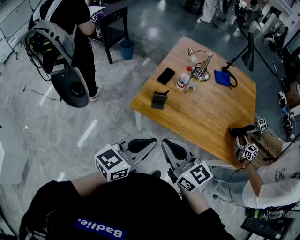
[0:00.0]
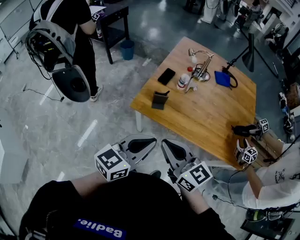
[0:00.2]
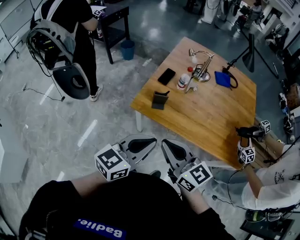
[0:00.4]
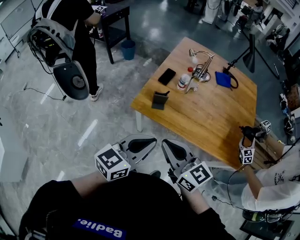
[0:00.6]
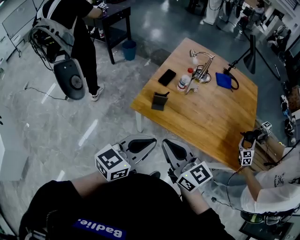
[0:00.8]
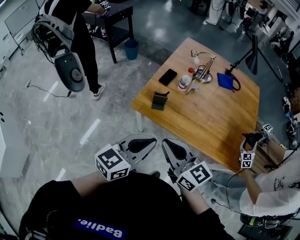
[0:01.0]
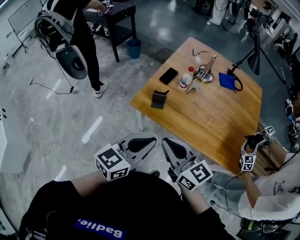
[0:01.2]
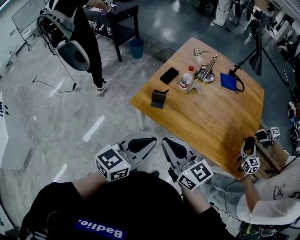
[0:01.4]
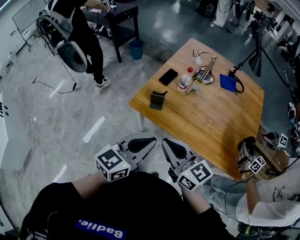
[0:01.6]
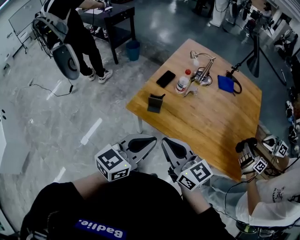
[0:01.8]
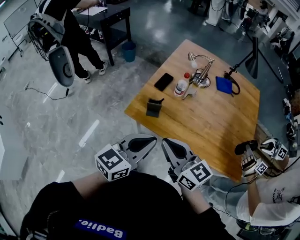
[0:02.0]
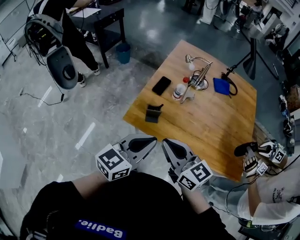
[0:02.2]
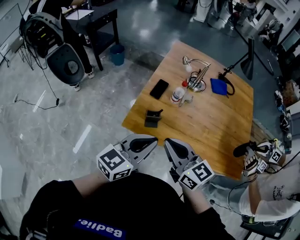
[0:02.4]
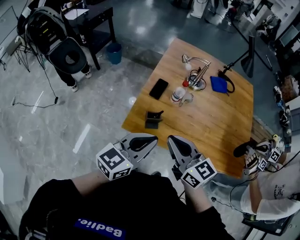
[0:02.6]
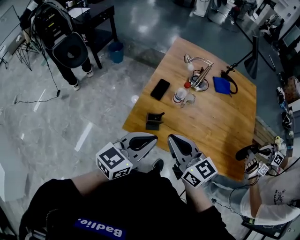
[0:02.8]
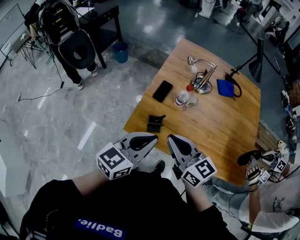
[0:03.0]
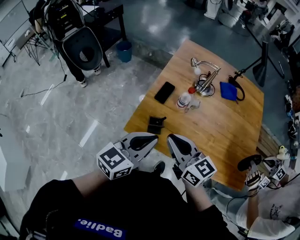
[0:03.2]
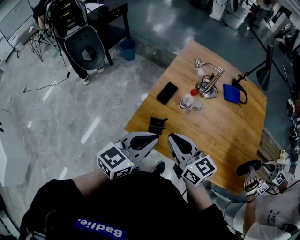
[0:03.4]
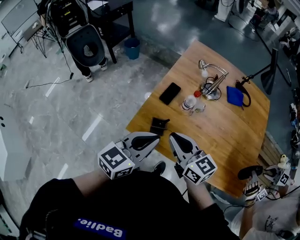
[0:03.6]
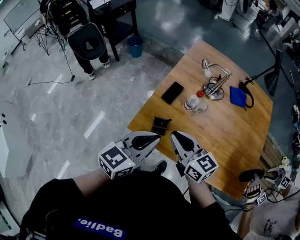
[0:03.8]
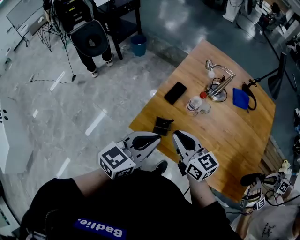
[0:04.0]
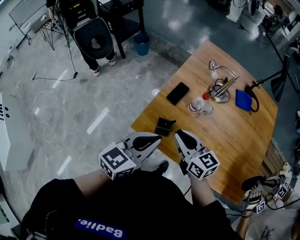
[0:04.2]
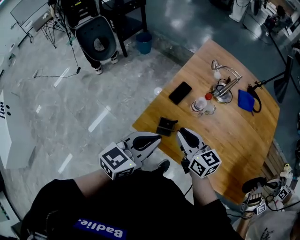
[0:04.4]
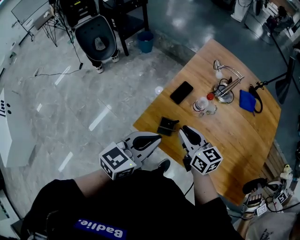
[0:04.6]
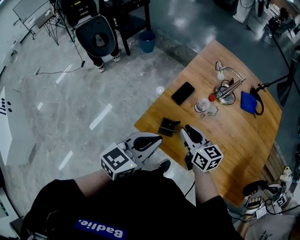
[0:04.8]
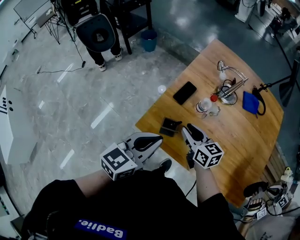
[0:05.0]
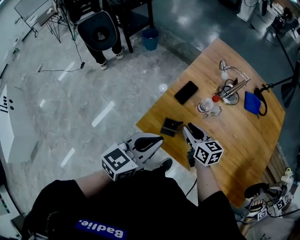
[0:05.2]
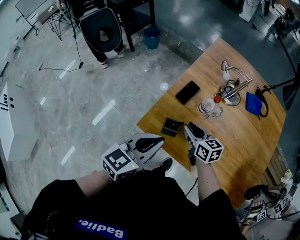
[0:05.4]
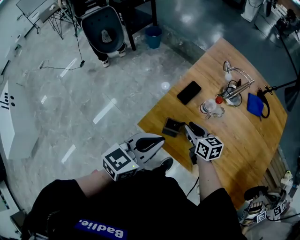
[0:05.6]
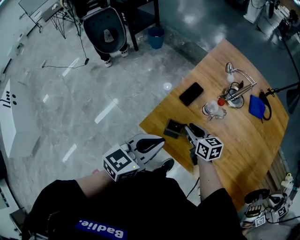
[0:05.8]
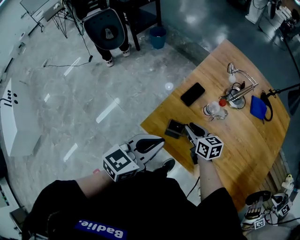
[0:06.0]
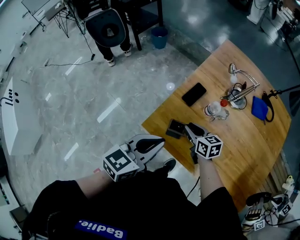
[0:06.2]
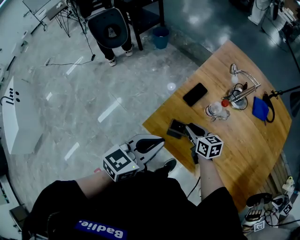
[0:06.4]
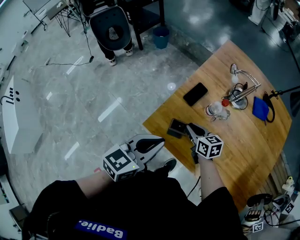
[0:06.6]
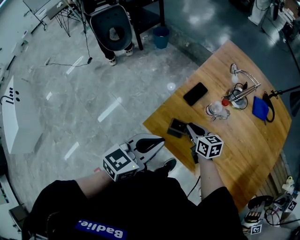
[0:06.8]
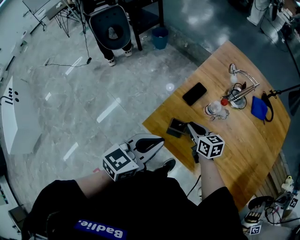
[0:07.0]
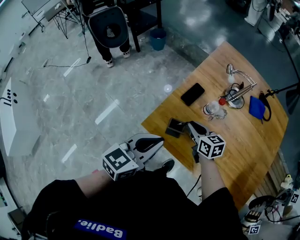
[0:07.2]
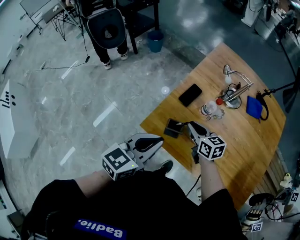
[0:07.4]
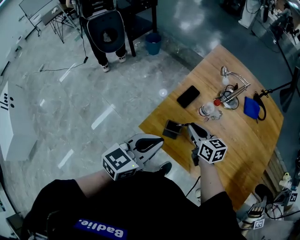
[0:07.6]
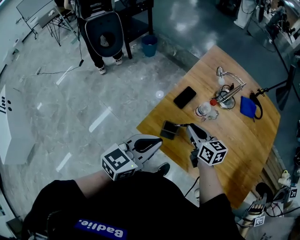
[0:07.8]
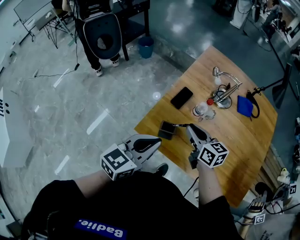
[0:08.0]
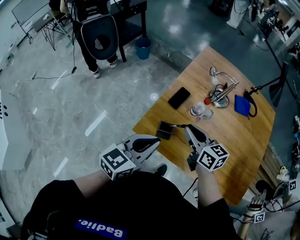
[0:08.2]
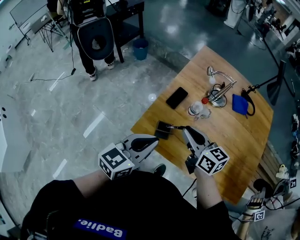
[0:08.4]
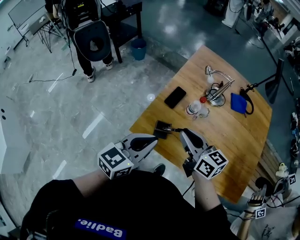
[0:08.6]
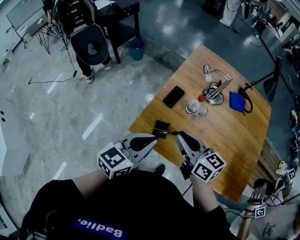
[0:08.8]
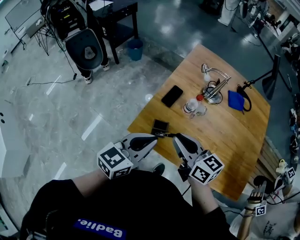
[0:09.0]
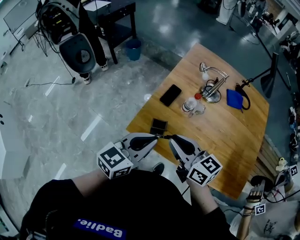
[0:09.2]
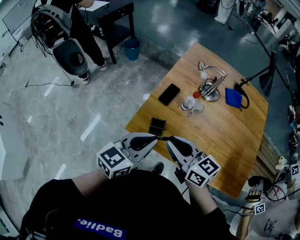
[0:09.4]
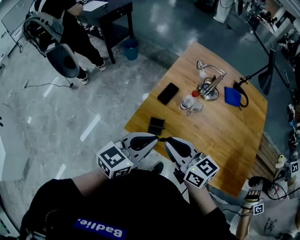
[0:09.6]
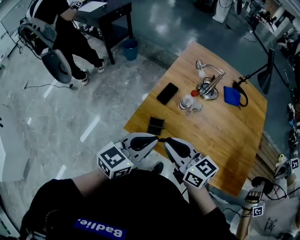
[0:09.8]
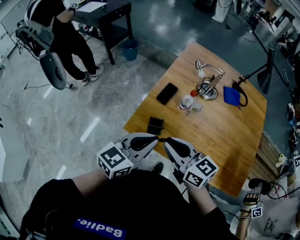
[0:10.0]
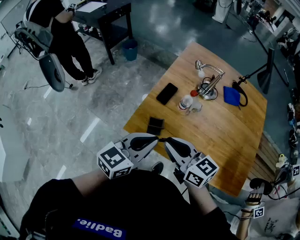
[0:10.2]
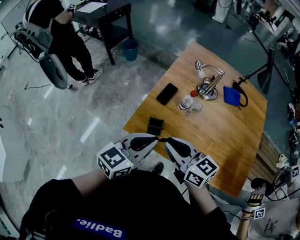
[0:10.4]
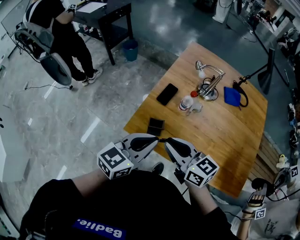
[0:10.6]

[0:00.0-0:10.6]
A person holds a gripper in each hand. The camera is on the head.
0:00.0 to 0:01.6: The grippers both shift to the right by approximately 5 cm.
0:01.6 to 0:03.0: Both grippers travel together forward, some 20 cm.
0:03.0 to 0:04.6: The right gripper moves downward and forward, some 15 cm. The left gripper changes place by approximately 5 cm.
0:04.6 to 0:06.0: The right gripper moves downward and forward, approximately 10 cm.
0:06.0 to 0:07.6: The right gripper is displaced upward by approximately 5 cm.
0:07.6 to 0:09.0: The right gripper goes some 15 cm upward and backward.
0:09.0 to 0:10.6: The grippers make only small movements.

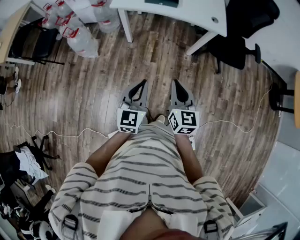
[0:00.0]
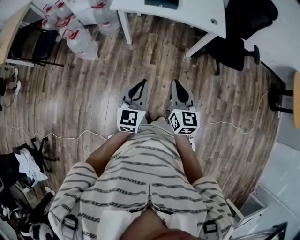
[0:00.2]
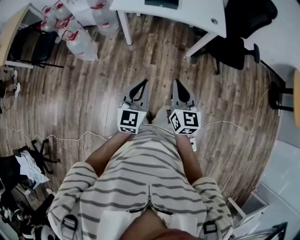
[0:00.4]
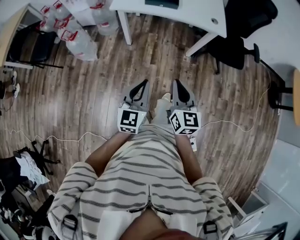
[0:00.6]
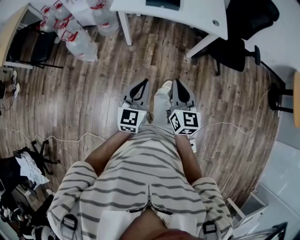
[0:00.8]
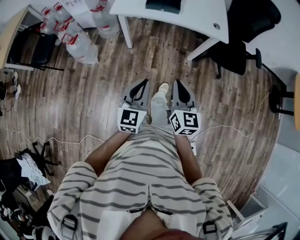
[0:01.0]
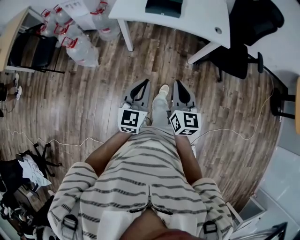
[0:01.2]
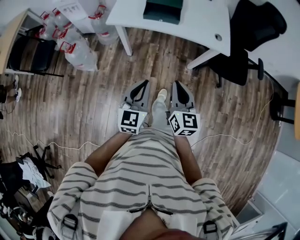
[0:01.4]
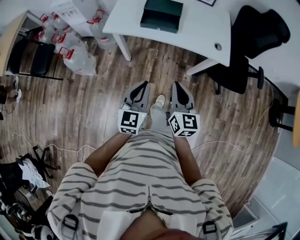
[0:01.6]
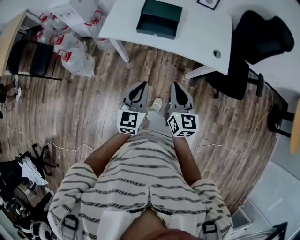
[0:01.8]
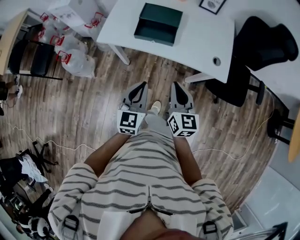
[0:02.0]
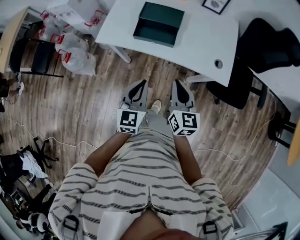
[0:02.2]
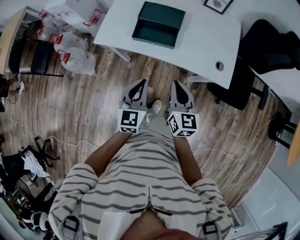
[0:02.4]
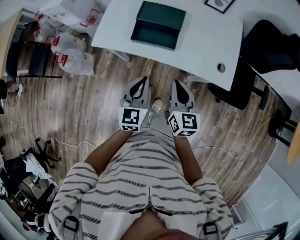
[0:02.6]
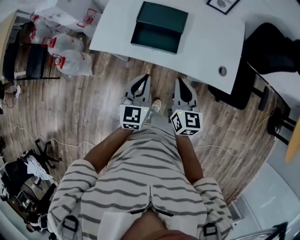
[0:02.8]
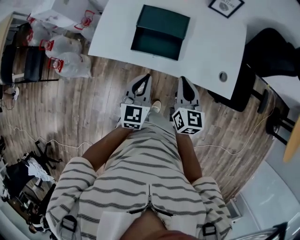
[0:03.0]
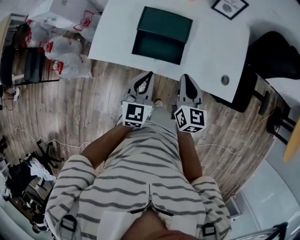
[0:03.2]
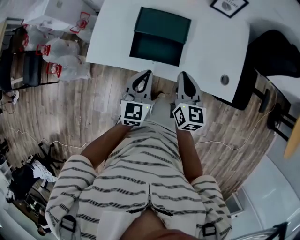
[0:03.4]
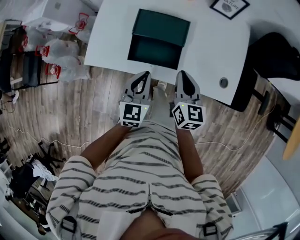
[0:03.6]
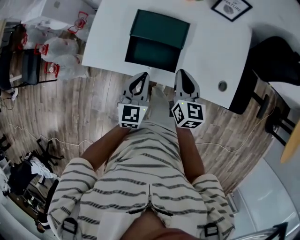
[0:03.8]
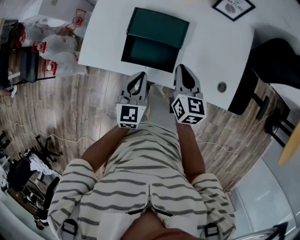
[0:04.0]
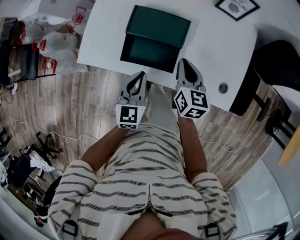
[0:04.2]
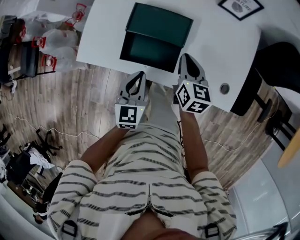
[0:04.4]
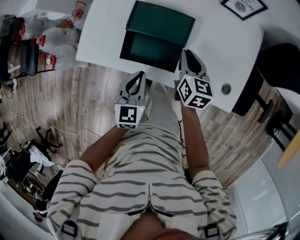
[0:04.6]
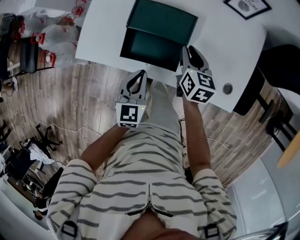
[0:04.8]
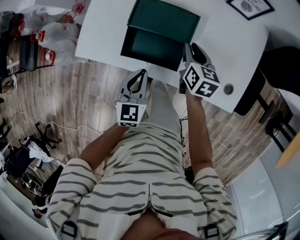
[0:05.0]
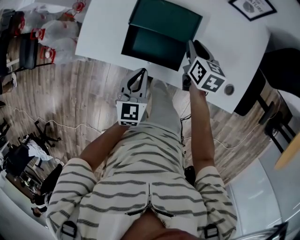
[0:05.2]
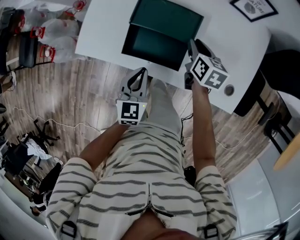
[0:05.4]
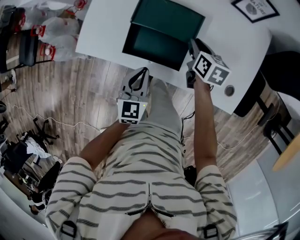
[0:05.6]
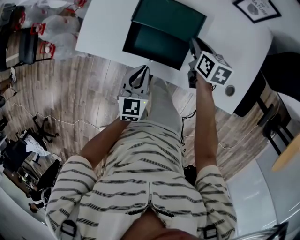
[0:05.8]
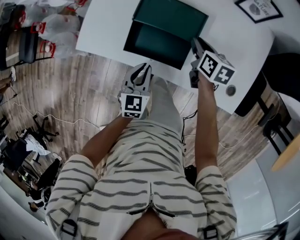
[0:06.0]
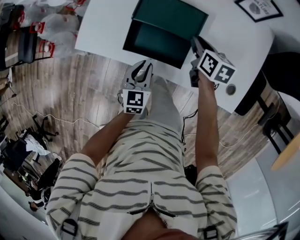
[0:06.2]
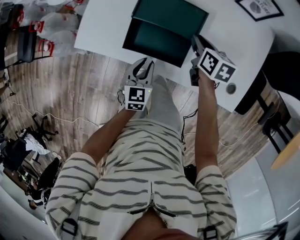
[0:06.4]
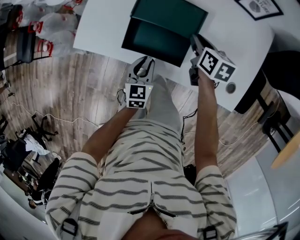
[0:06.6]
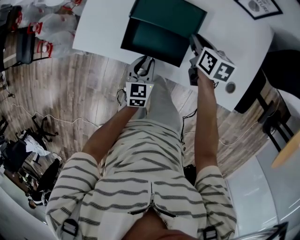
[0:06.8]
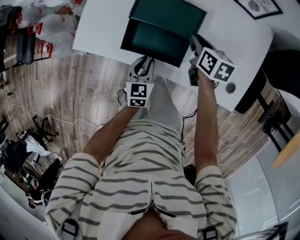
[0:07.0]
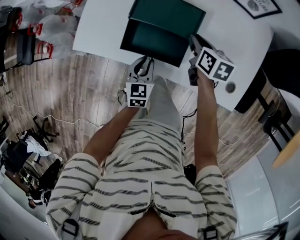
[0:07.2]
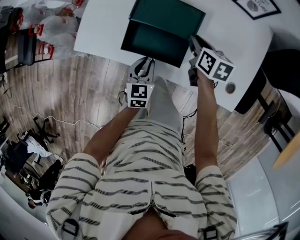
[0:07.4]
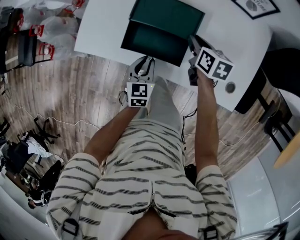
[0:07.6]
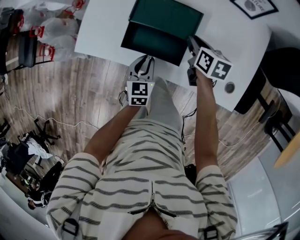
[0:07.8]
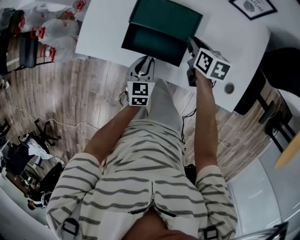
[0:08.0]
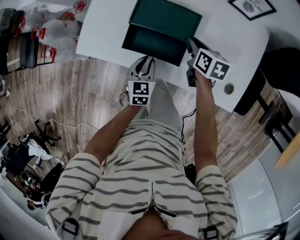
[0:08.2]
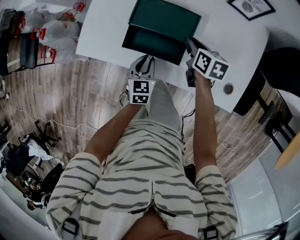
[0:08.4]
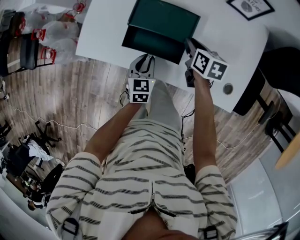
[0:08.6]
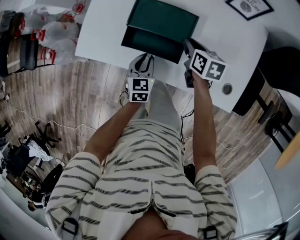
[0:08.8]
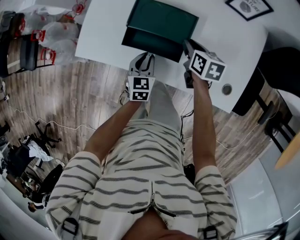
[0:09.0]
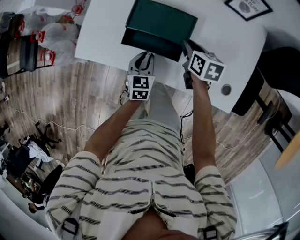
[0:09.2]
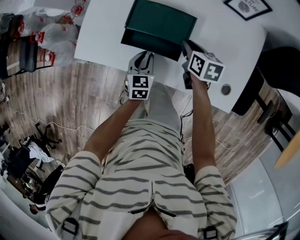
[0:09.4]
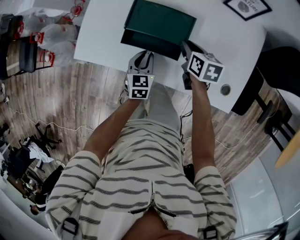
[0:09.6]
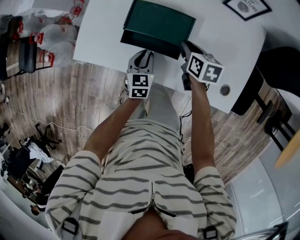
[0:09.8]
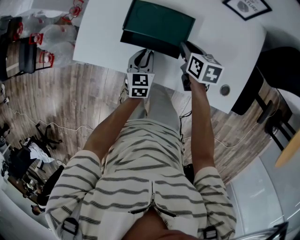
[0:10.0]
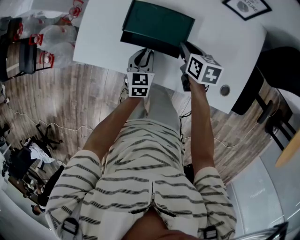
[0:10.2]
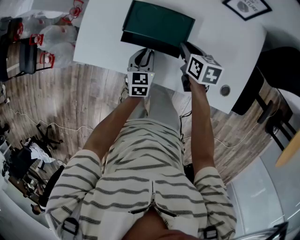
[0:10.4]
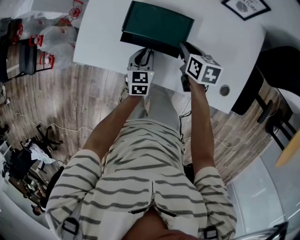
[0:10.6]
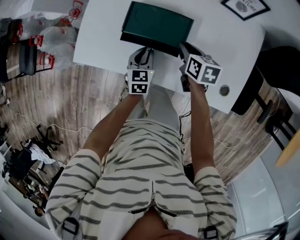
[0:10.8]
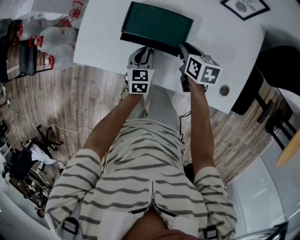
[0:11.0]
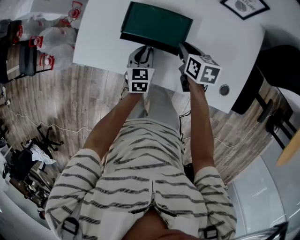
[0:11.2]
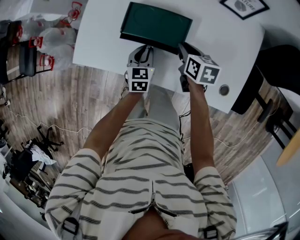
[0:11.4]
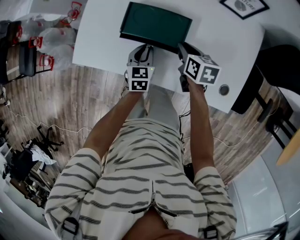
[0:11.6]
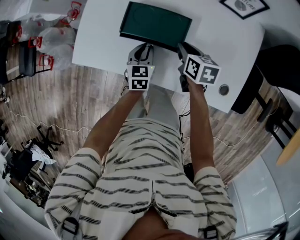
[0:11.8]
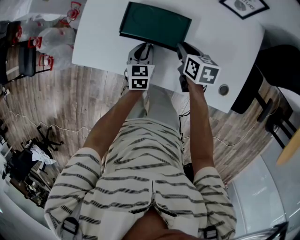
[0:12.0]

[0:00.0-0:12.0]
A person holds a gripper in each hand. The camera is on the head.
0:00.0 to 0:01.6: The two grippers go roughly 25 cm forward.
0:01.6 to 0:03.0: Both grippers move forward, roughly 30 cm.
0:03.0 to 0:04.4: The left gripper heads forward and downward, covering roughly 10 cm; the right gripper heads forward and downward, covering roughly 20 cm.
0:04.4 to 0:06.0: The right gripper heads downward and forward, covering approximately 10 cm, while the left gripper moves downward, approximately 5 cm.
0:06.0 to 0:07.6: The grippers make only small movements.
0:07.6 to 0:09.0: The grippers make only small movements.
0:09.0 to 0:10.4: The grippers stay close to where they were, moving slightly.
0:10.4 to 0:12.0: There are only small adjustments of the grippers.

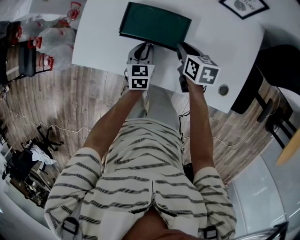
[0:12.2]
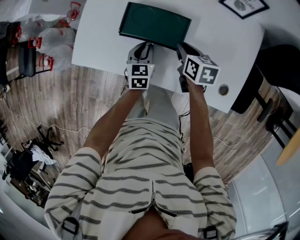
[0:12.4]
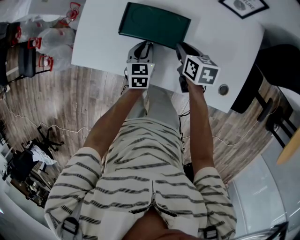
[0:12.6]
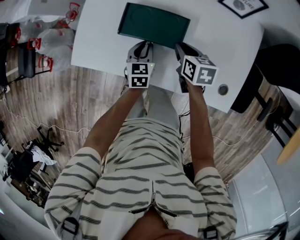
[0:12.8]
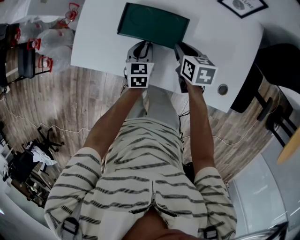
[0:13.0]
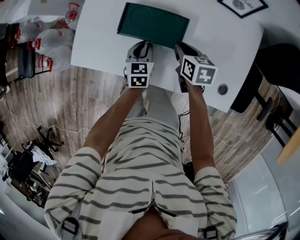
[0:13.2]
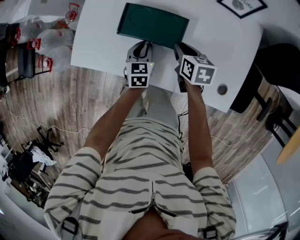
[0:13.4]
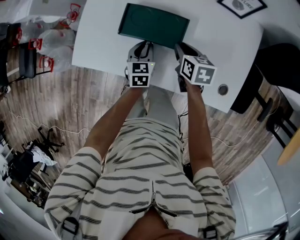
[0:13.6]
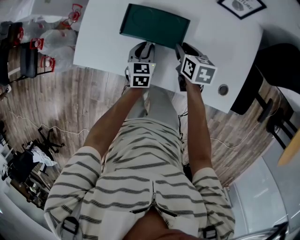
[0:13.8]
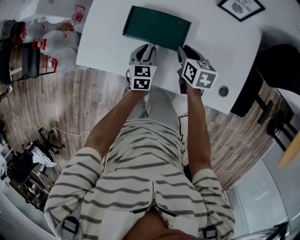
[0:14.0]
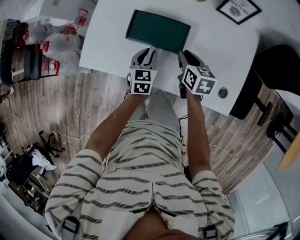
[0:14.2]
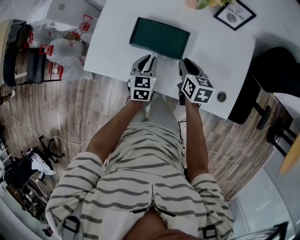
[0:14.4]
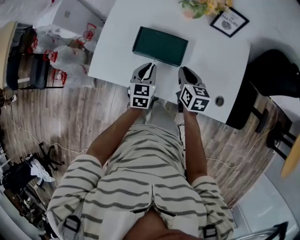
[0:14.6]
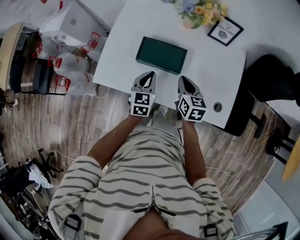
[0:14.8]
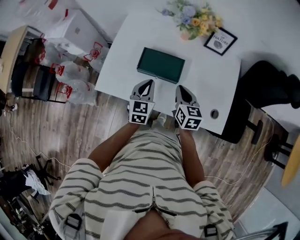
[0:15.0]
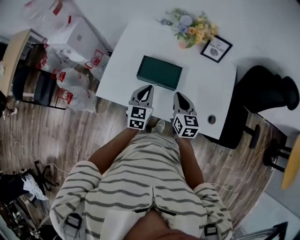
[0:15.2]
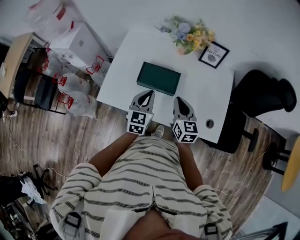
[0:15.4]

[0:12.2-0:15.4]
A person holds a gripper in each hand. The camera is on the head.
0:12.2 to 0:13.8: Both grippers stay about where they are.
0:13.8 to 0:15.4: The left gripper moves upward, some 25 cm, swivels some 20 degrees, and closes up. Meanwhile the right gripper travels upward and backward by some 20 cm, changes its angle by roughly 30 degrees, and closes its fingers.
